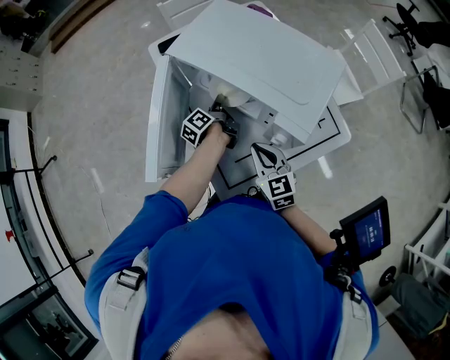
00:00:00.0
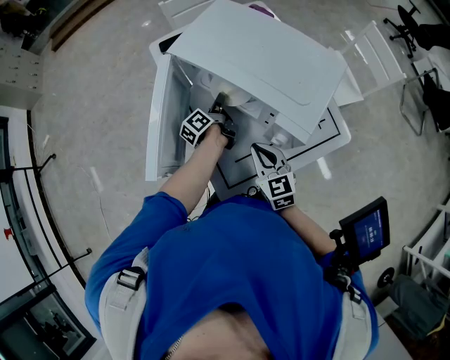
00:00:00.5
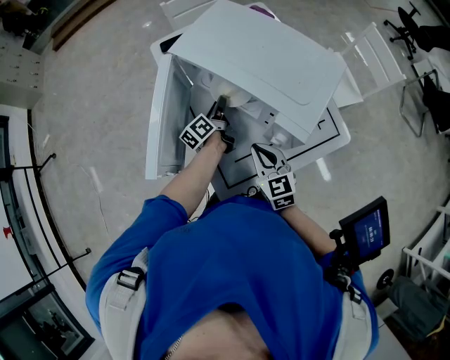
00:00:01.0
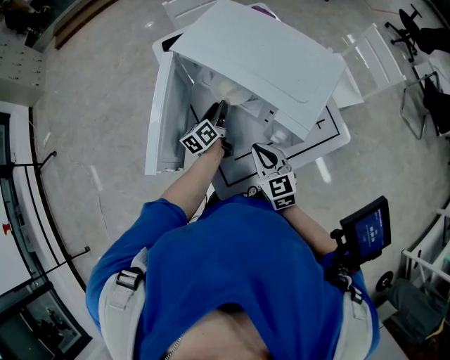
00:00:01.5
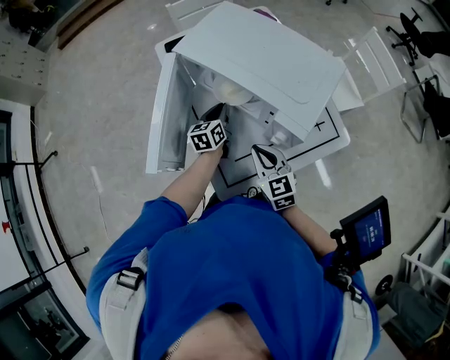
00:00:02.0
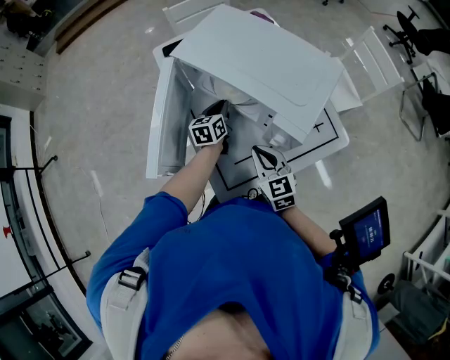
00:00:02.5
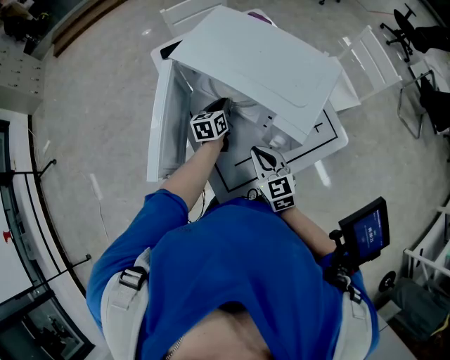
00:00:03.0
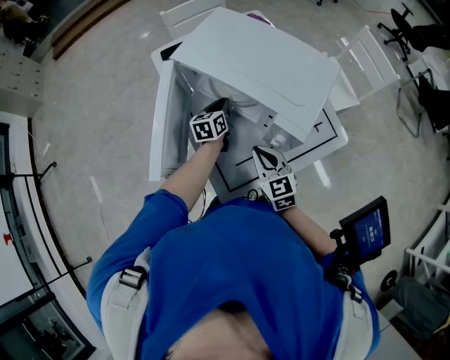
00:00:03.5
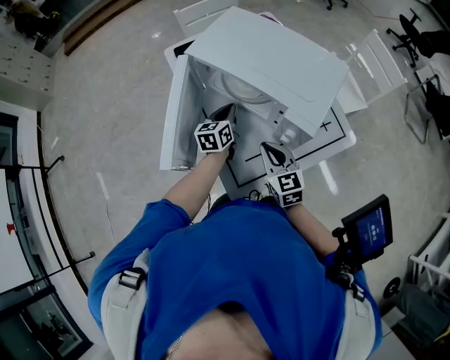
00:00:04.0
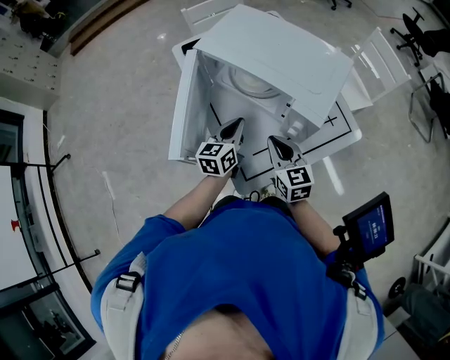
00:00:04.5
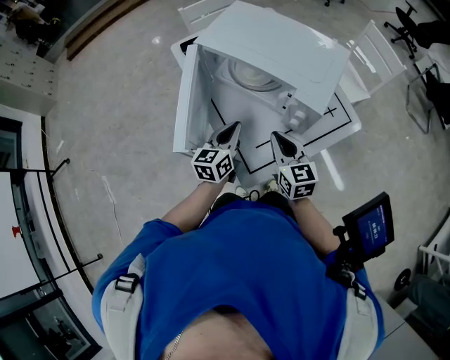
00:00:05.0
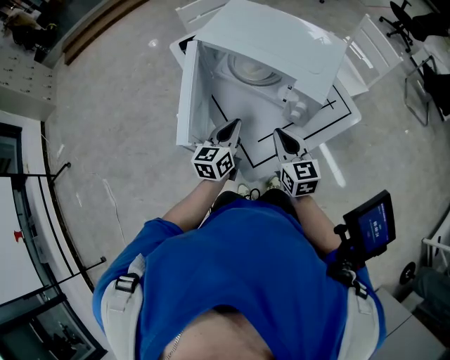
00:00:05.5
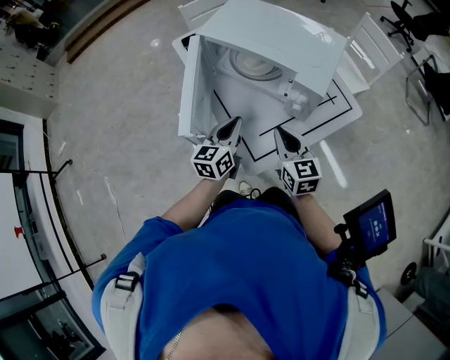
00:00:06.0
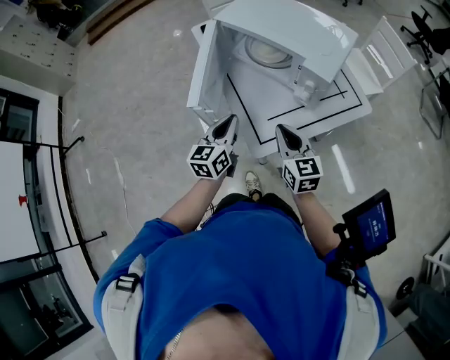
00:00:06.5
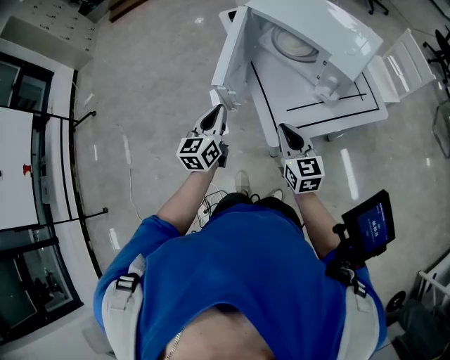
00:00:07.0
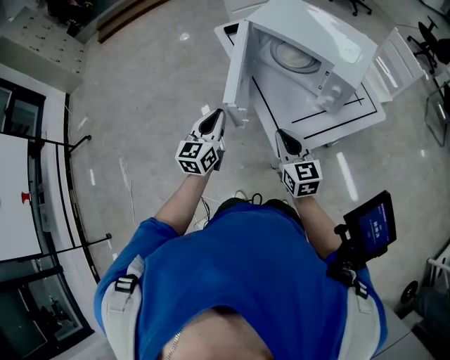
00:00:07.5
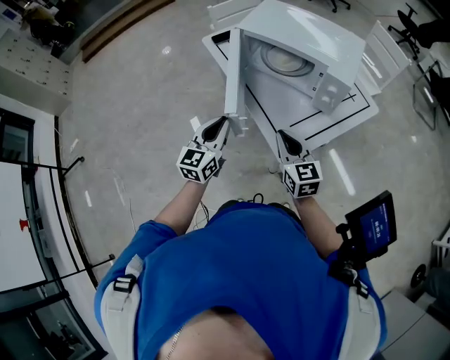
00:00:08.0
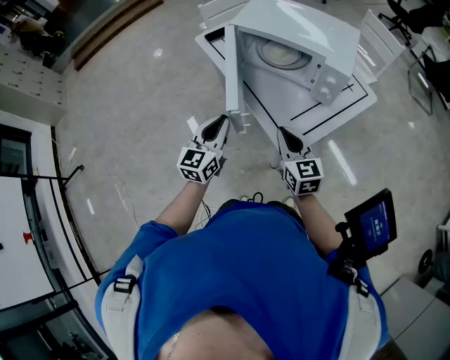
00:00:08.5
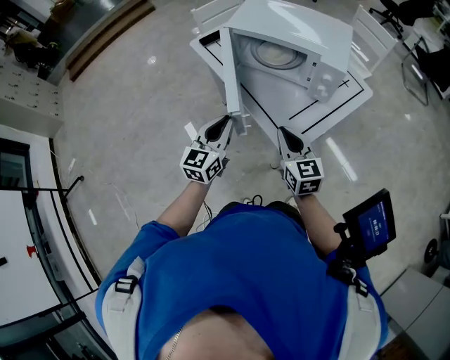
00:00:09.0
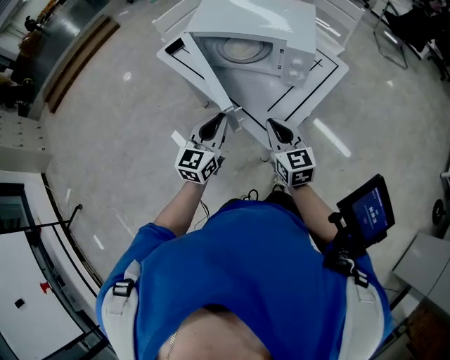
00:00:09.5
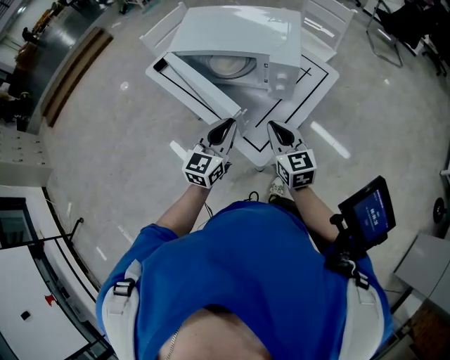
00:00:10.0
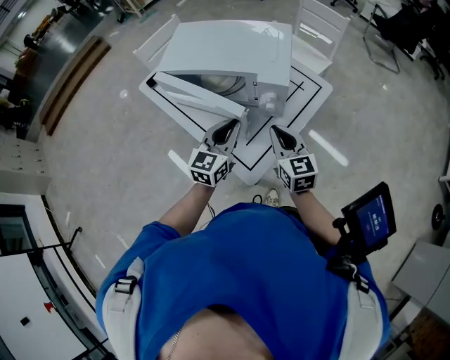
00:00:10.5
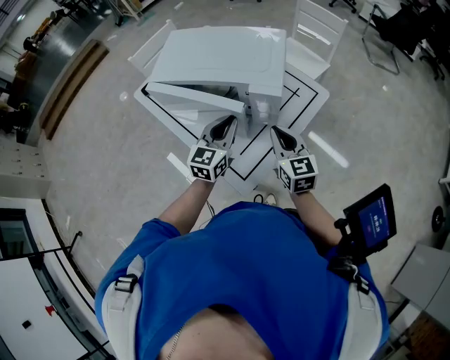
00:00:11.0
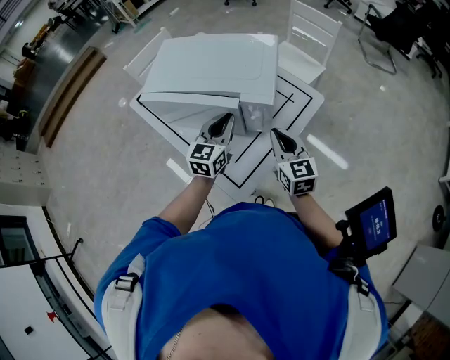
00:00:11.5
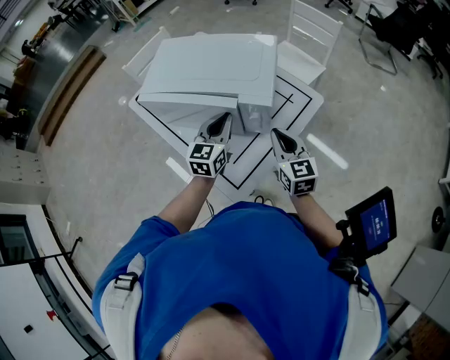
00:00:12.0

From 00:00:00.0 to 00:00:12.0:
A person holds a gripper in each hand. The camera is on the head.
From 00:00:00.0 to 00:00:02.0: The left gripper rolls clockwise, seen from behind, by approximately 50 degrees, and opens and closes again.
From 00:00:02.0 to 00:00:04.0: The grippers stay close to where they were, moving slightly.
From 00:00:04.0 to 00:00:06.0: The right gripper travels backward by some 5 cm; the left gripper is displaced backward by some 15 cm.
From 00:00:06.0 to 00:00:08.0: The right gripper is displaced to the left and backward by about 15 cm. Meanwhile the left gripper heads to the left, covering about 15 cm.
From 00:00:08.0 to 00:00:10.0: The left gripper moves to the right and forward, approximately 15 cm, and changes its angle by about 20 degrees, while the right gripper shifts some 10 cm to the right.
From 00:00:10.0 to 00:00:12.0: Both grippers travel together forward and to the right, about 15 cm.

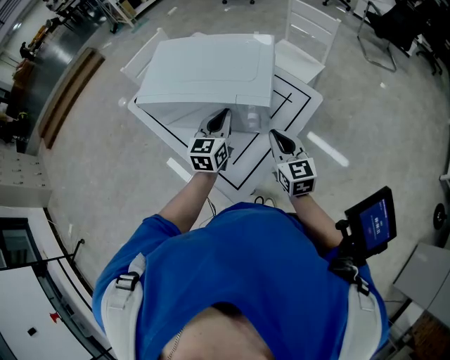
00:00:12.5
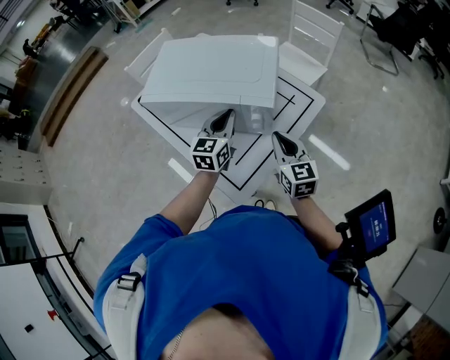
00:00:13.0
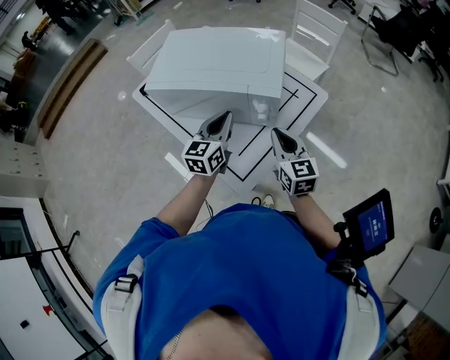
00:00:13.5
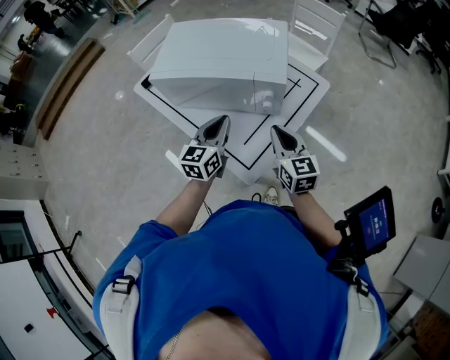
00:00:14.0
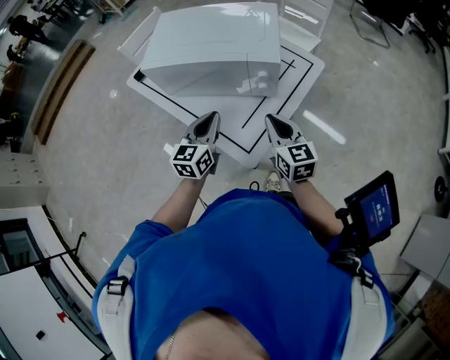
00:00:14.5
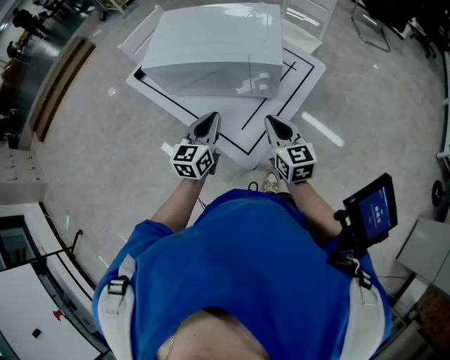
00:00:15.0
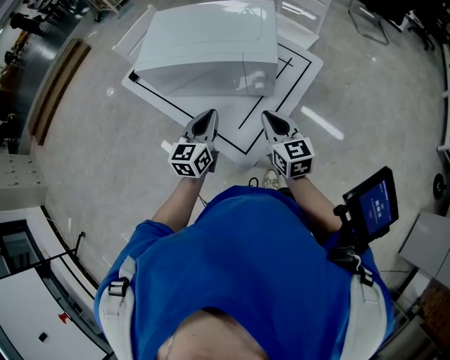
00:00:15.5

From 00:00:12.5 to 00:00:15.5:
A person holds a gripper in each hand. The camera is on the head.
From 00:00:12.5 to 00:00:14.0: Both grippers travel together backward and to the left, some 10 cm.
From 00:00:14.0 to 00:00:15.5: There are only small adjustments of the grippers.

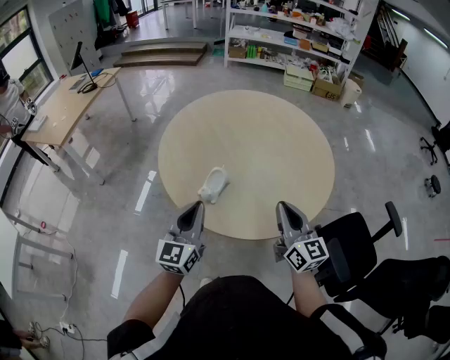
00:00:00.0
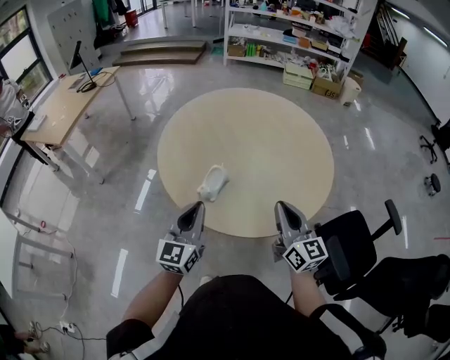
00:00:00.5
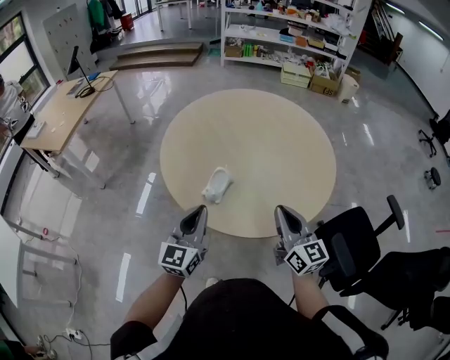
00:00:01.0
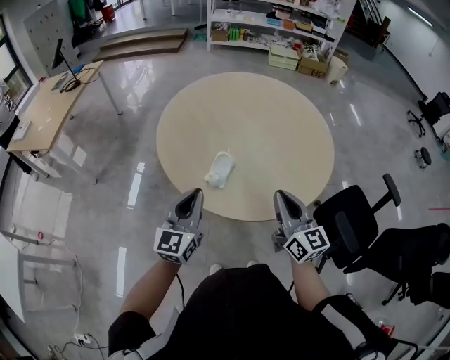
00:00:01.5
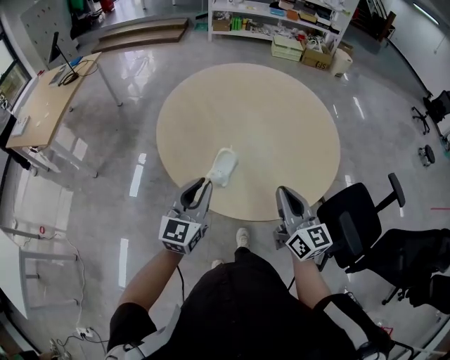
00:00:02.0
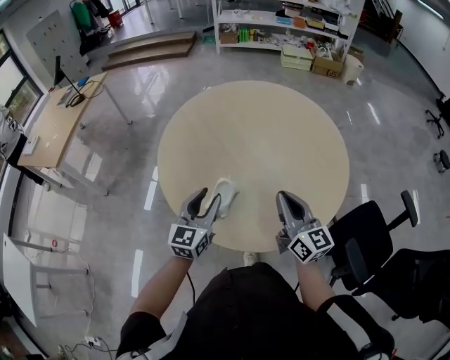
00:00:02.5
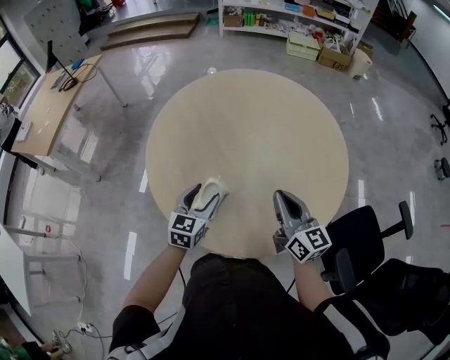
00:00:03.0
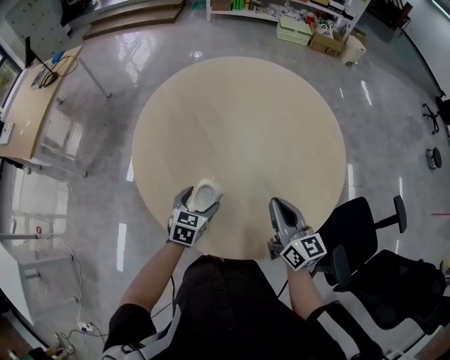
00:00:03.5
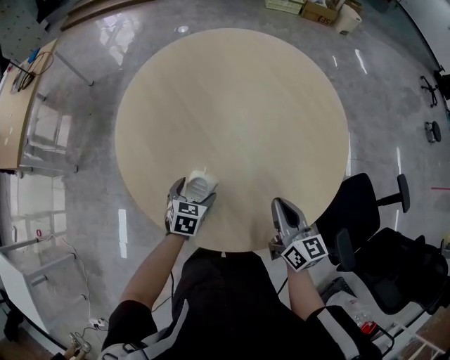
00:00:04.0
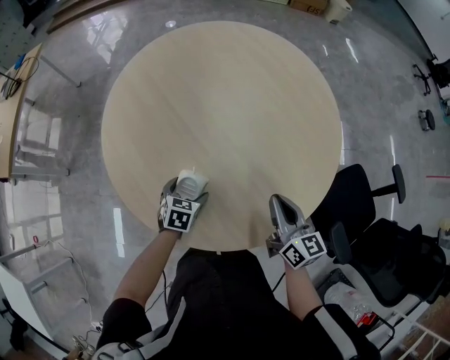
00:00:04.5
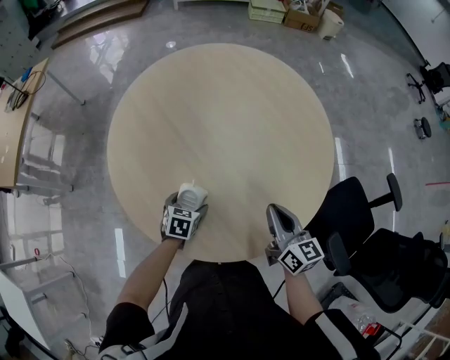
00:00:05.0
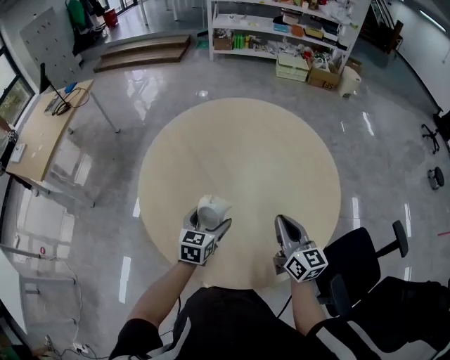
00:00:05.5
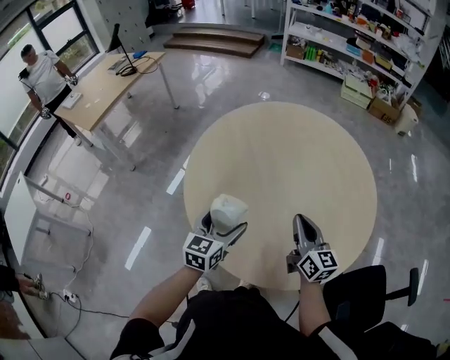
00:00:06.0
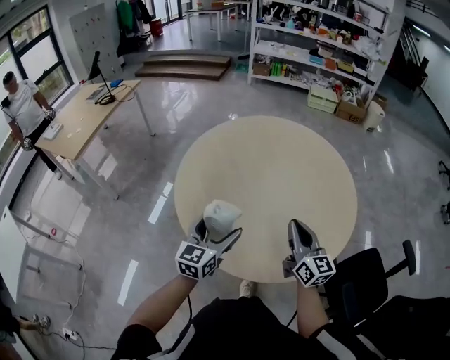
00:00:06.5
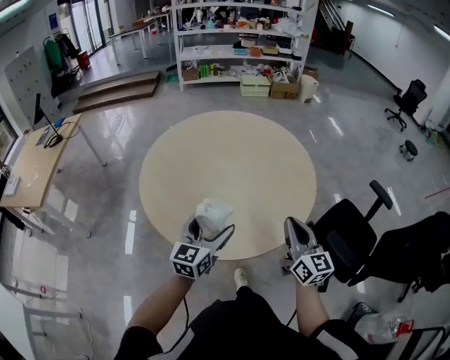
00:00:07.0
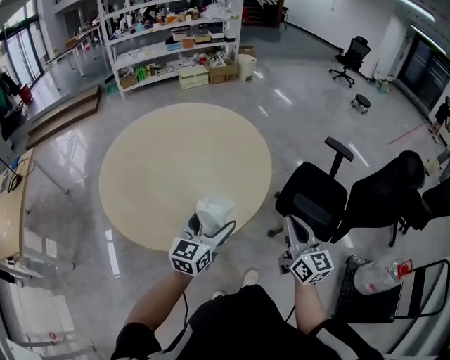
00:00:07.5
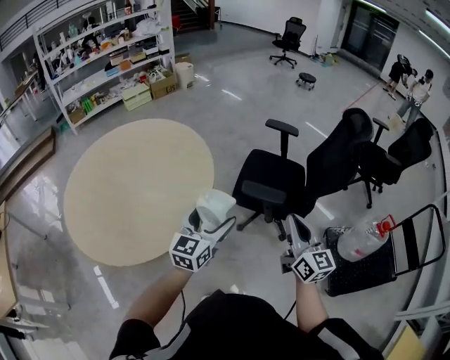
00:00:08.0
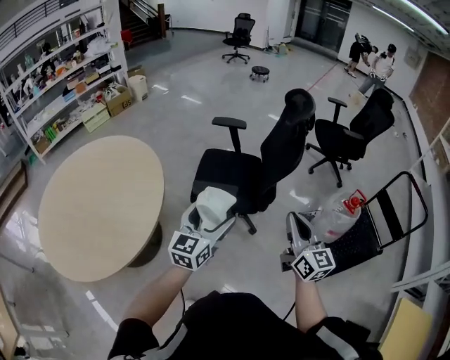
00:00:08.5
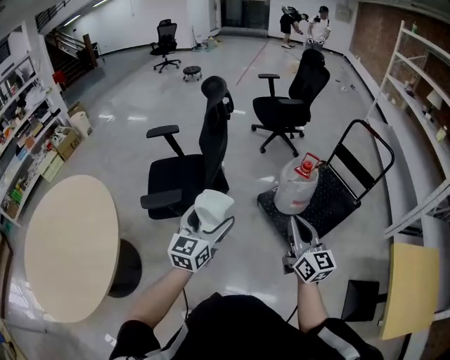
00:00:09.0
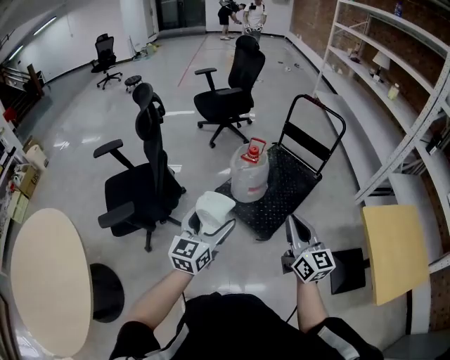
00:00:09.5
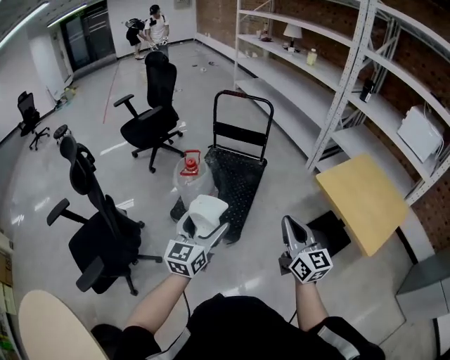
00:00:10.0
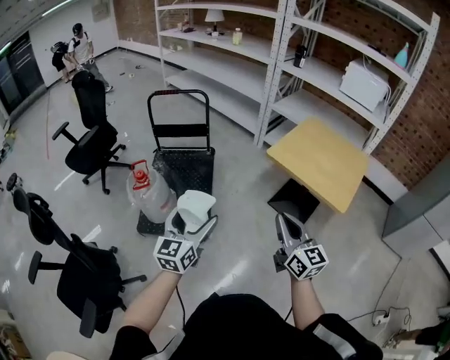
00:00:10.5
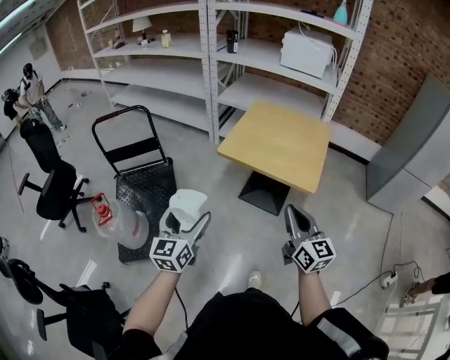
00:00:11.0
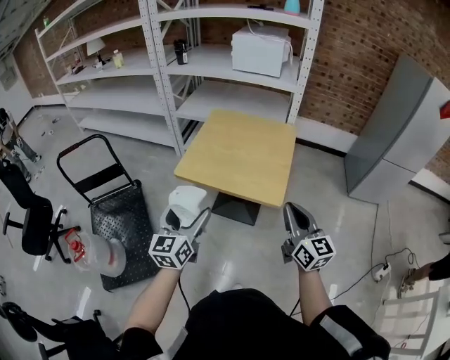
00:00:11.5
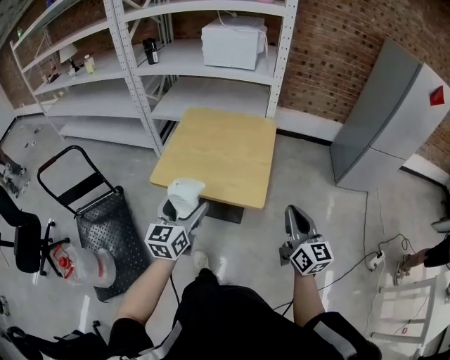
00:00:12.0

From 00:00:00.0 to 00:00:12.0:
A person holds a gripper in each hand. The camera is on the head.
From 00:00:00.0 to 00:00:02.0: The right gripper travels to the left by approximately 5 cm, while the left gripper ends up approximately 5 cm from where it was.
From 00:00:02.0 to 00:00:04.0: The right gripper goes about 15 cm downward, forward and to the right, while the left gripper heads downward and forward, covering about 30 cm, points its fingers about 50 degrees further downward, and opens.
From 00:00:04.0 to 00:00:06.0: The right gripper heads forward, covering roughly 10 cm. The left gripper heads upward, covering about 20 cm, and changes its angle by about 40 degrees.
From 00:00:06.0 to 00:00:08.0: Both grippers are carried approximately 50 cm. The left gripper changes its angle by some 70 degrees, while the right gripper rotates some 60 degrees.
From 00:00:08.0 to 00:00:10.0: The pair of grippers is taken approximately 70 cm. The left gripper changes its angle by some 70 degrees; the right gripper turns by approximately 70 degrees.
From 00:00:10.0 to 00:00:12.0: The two grippers travel together, about 50 cm. The left gripper rotates roughly 50 degrees. Meanwhile the right gripper rotates approximately 60 degrees.
